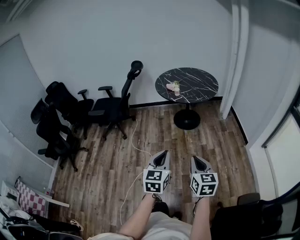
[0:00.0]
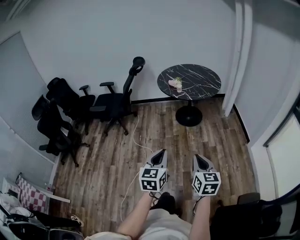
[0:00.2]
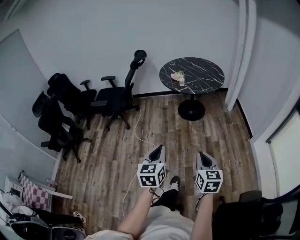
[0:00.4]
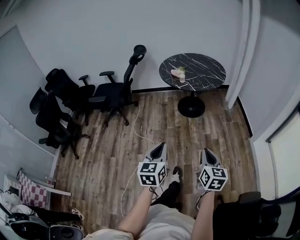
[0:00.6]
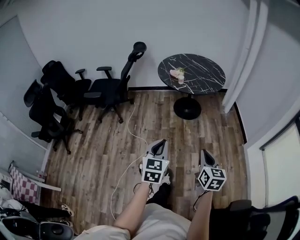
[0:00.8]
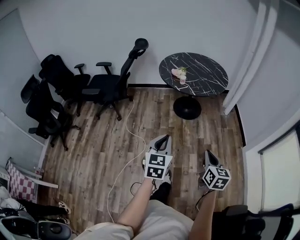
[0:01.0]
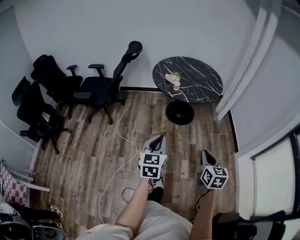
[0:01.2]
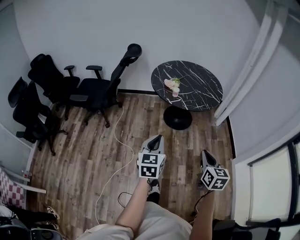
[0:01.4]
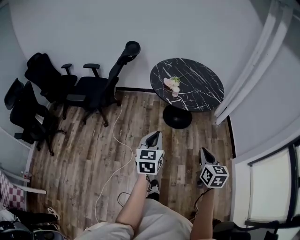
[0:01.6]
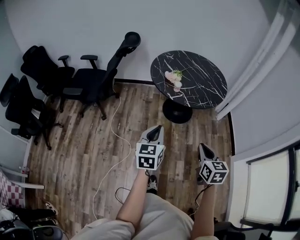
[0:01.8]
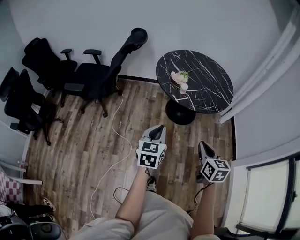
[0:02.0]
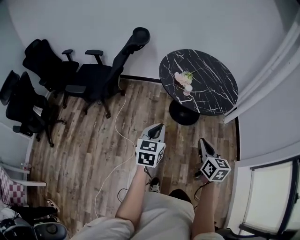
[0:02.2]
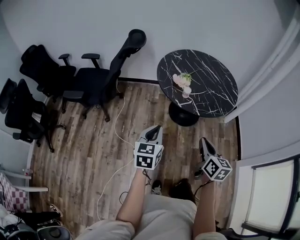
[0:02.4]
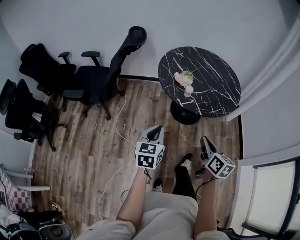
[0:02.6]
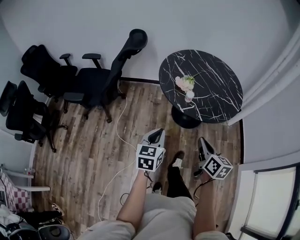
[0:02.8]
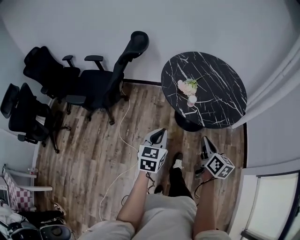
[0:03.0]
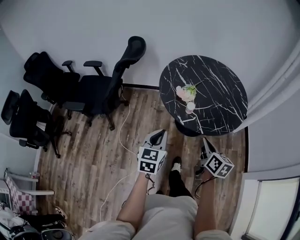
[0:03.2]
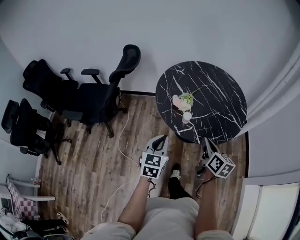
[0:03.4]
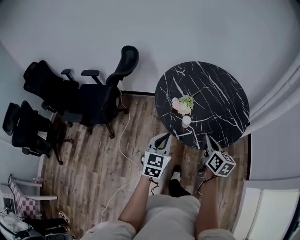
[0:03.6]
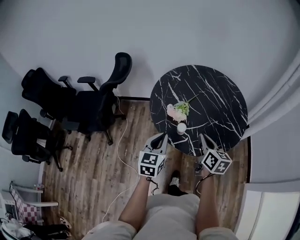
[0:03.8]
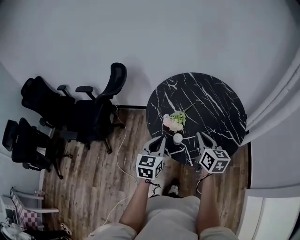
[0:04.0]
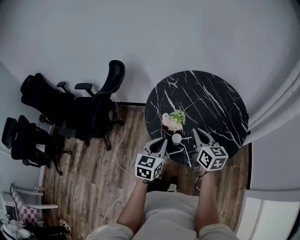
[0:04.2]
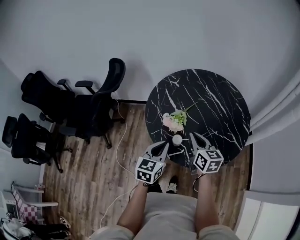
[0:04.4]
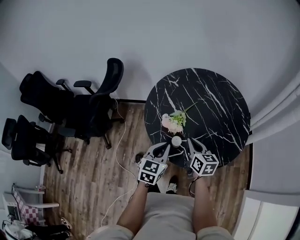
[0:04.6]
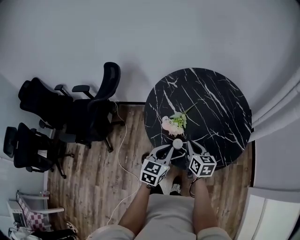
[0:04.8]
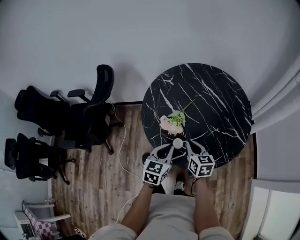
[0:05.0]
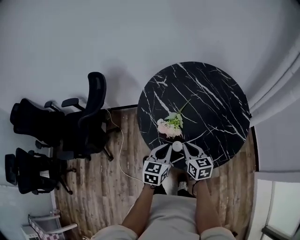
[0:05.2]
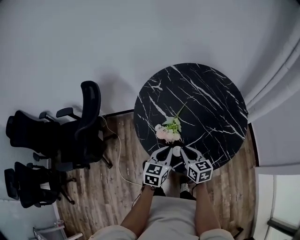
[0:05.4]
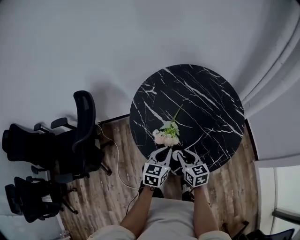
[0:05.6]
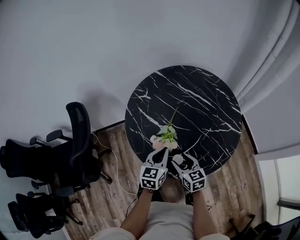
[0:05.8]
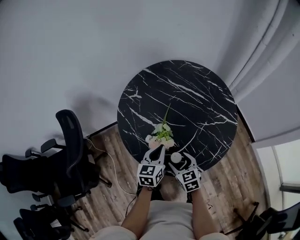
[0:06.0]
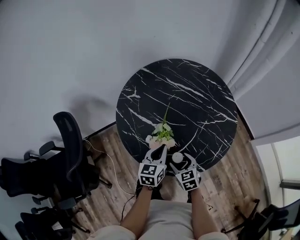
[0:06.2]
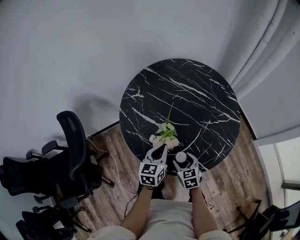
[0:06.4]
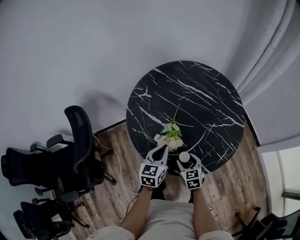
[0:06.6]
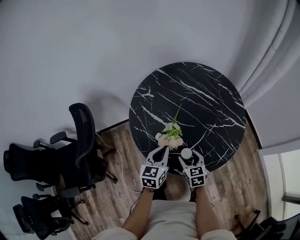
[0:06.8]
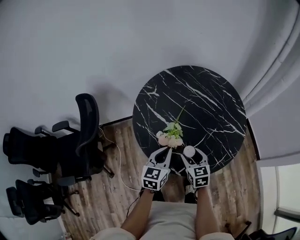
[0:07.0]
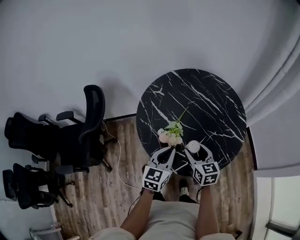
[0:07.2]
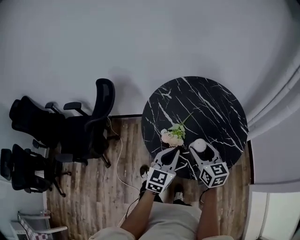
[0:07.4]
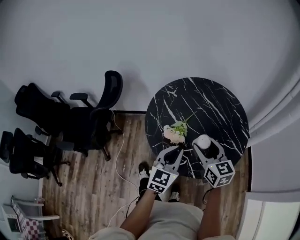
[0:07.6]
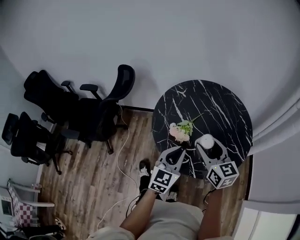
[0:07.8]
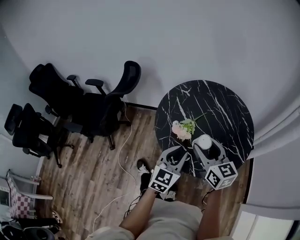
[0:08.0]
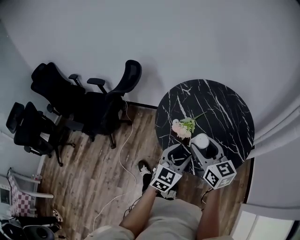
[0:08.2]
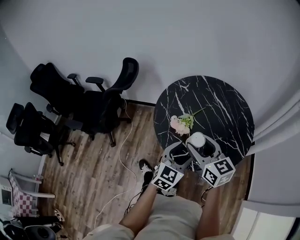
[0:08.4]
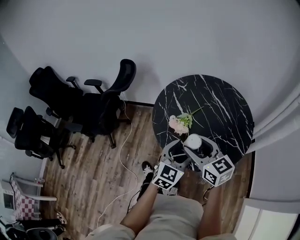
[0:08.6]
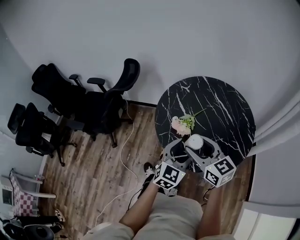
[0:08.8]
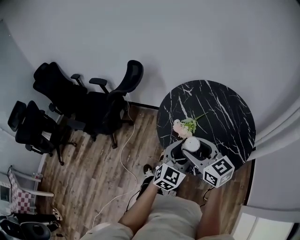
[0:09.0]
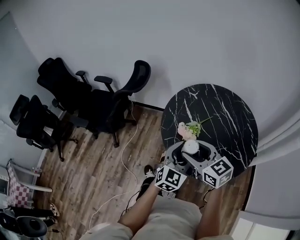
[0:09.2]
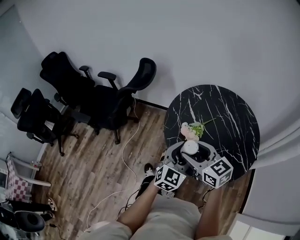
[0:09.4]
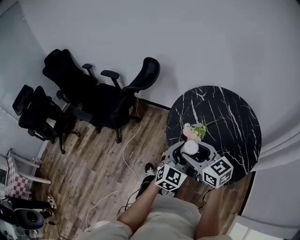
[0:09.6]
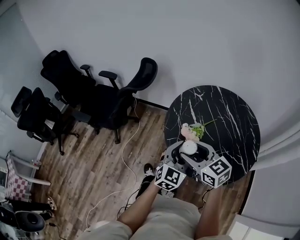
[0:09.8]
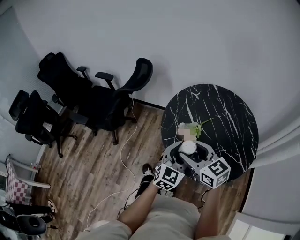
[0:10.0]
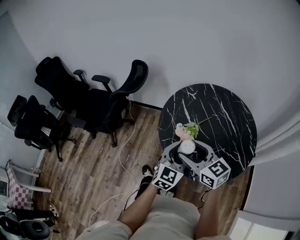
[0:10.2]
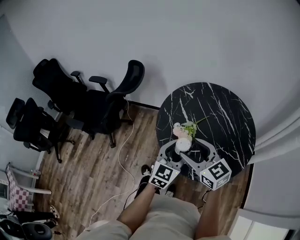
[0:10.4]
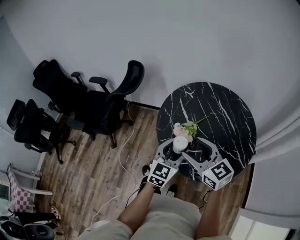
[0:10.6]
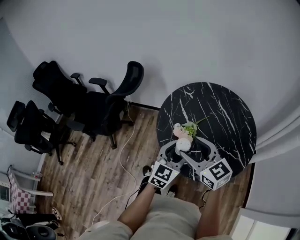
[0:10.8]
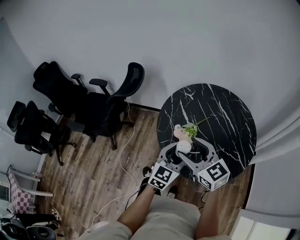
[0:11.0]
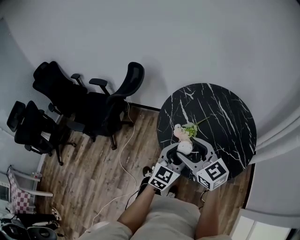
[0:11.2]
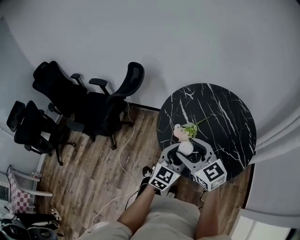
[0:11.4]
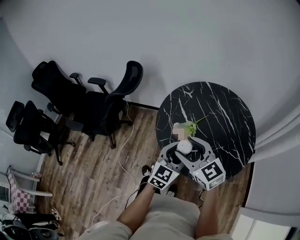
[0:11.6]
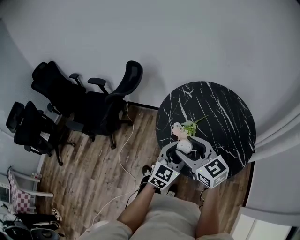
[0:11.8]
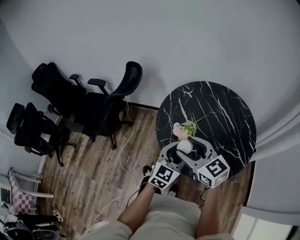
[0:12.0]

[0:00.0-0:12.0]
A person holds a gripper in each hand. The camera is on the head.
0:00.0 to 0:01.6: Both grippers move forward, some 35 cm.
0:01.6 to 0:03.0: Both grippers travel together forward, about 25 cm. The right gripper rotates about 20 degrees.
0:03.0 to 0:04.4: The right gripper moves forward, some 30 cm, while the left gripper is displaced forward and to the right by approximately 30 cm.
0:04.4 to 0:06.0: The left gripper goes some 20 cm forward and downward, and changes its angle by some 20 degrees. Meanwhile the right gripper moves downward and to the left, about 15 cm, turns by some 30 degrees, and opens up.
0:06.0 to 0:07.6: The right gripper heads upward, covering some 20 cm, and rotates approximately 30 degrees. The left gripper heads upward, backward and to the right, covering about 20 cm, and swivels about 20 degrees.
0:07.6 to 0:09.0: The left gripper shifts by roughly 5 cm, and opens up, while the right gripper travels to the left and backward by roughly 10 cm, and turns by roughly 30 degrees.
0:09.0 to 0:10.4: The left gripper ends up approximately 5 cm from where it was.
0:10.4 to 0:12.0: The grippers stay close to where they were, moving slightly.

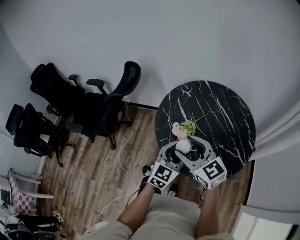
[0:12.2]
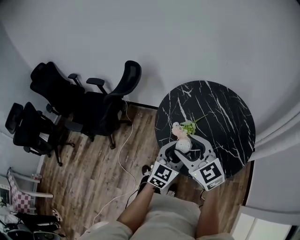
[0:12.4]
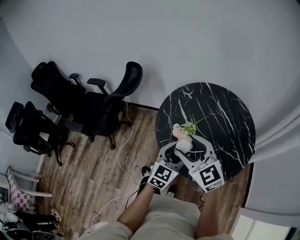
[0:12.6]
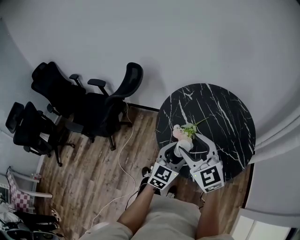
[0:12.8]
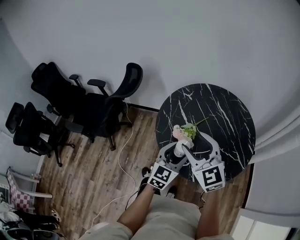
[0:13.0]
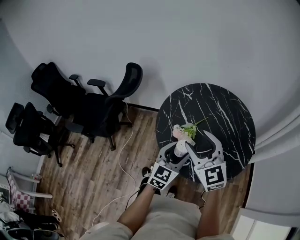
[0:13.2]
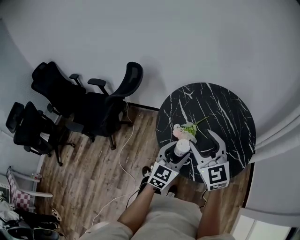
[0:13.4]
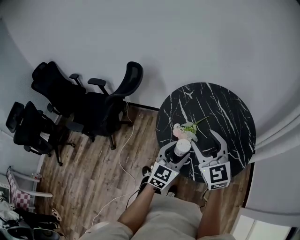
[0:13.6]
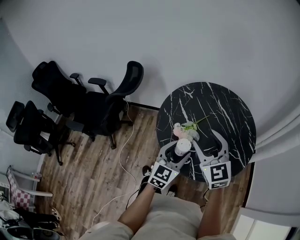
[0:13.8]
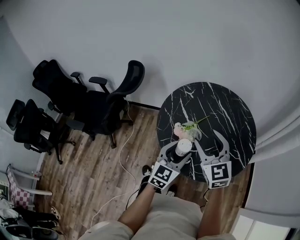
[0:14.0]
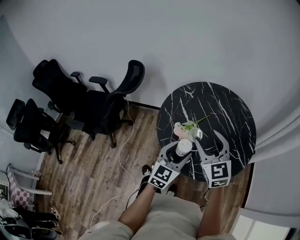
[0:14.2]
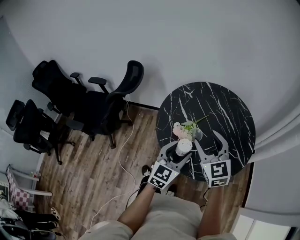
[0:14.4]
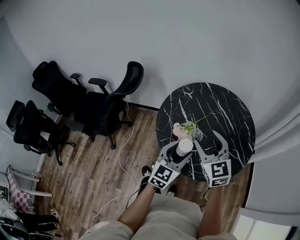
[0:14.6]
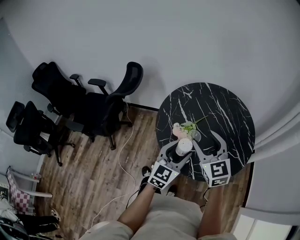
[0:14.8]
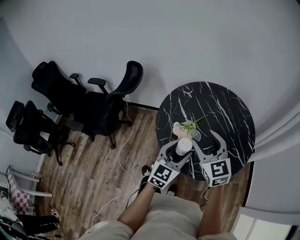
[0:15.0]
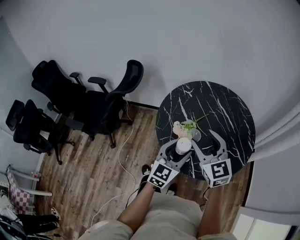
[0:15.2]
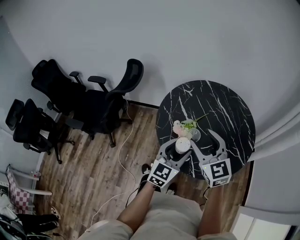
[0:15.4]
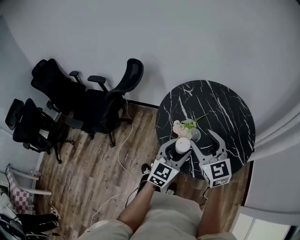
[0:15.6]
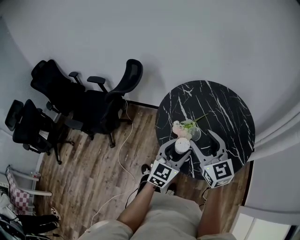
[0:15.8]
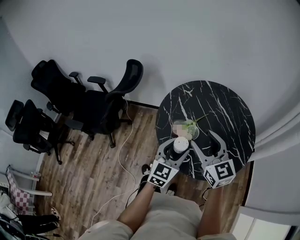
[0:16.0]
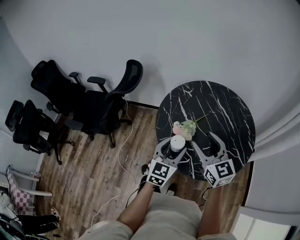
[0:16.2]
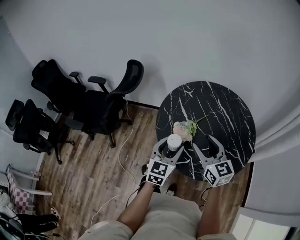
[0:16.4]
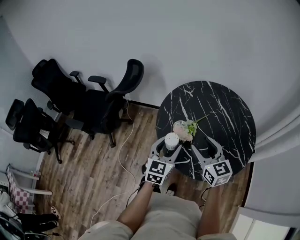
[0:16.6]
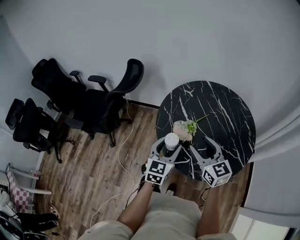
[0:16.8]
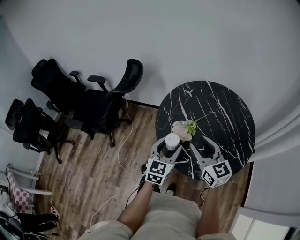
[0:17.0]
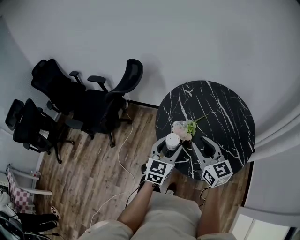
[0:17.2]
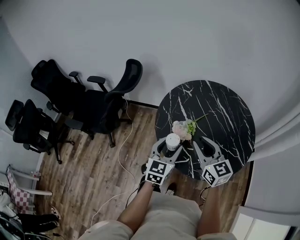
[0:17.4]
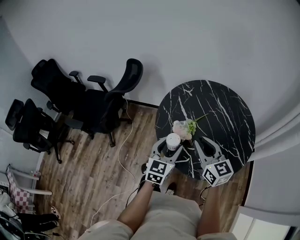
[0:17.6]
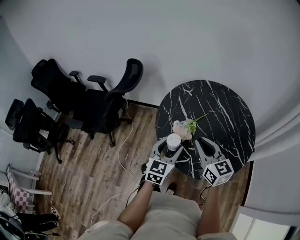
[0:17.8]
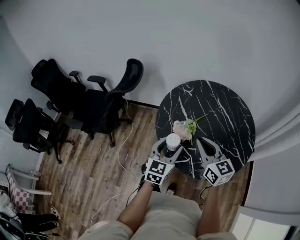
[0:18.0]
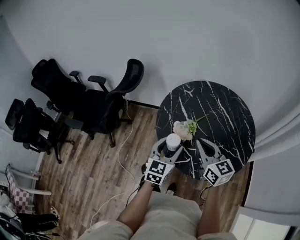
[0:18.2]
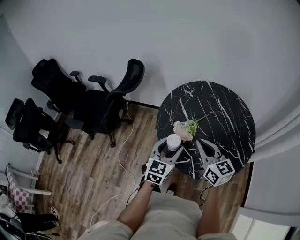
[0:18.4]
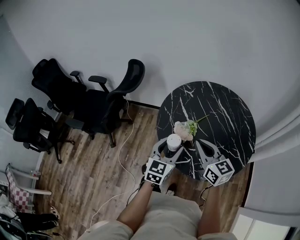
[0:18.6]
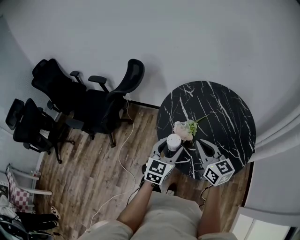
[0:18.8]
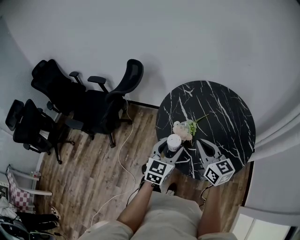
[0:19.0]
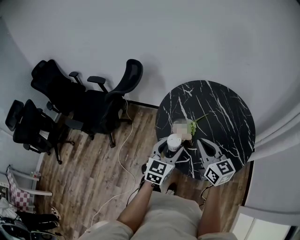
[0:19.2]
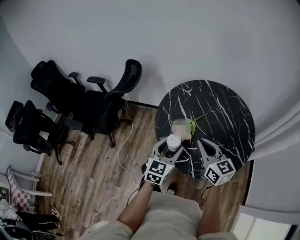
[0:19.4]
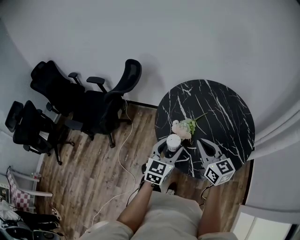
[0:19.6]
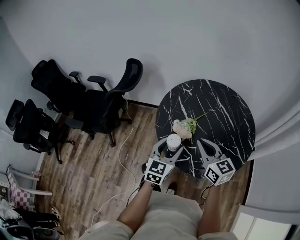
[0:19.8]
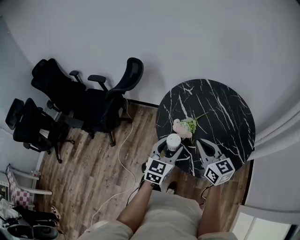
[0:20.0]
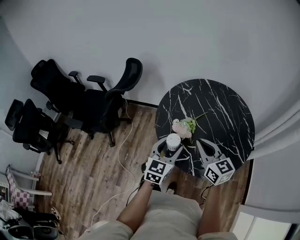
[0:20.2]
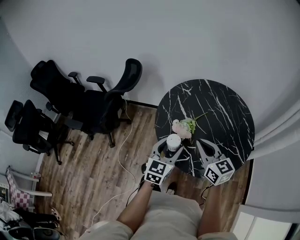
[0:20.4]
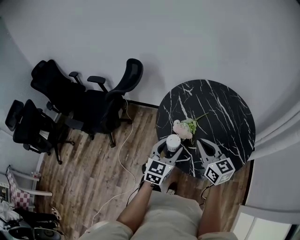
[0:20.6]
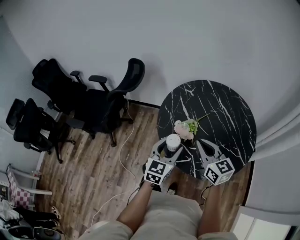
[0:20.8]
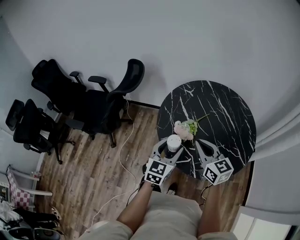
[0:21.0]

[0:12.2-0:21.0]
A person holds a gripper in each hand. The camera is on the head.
0:12.2 to 0:13.6: The right gripper moves to the right, approximately 5 cm, and rotates about 20 degrees.
0:13.6 to 0:15.2: The grippers stay close to where they were, moving slightly.
0:15.2 to 0:16.6: The right gripper goes approximately 5 cm downward. The left gripper moves to the left, roughly 5 cm.
0:16.6 to 0:18.0: The right gripper closes its fingers.
0:18.0 to 0:19.6: Both grippers stay put.
0:19.6 to 0:21.0: The grippers move only a little.

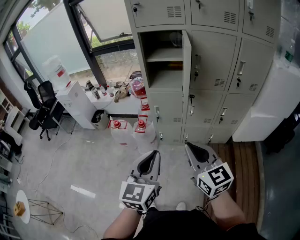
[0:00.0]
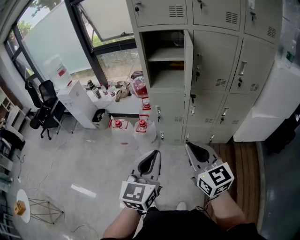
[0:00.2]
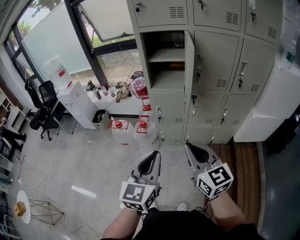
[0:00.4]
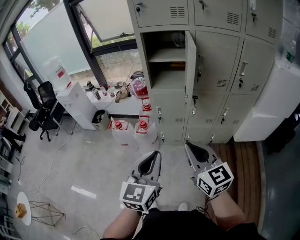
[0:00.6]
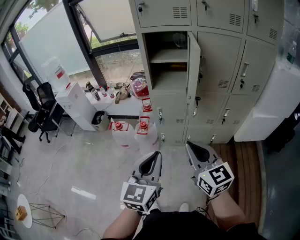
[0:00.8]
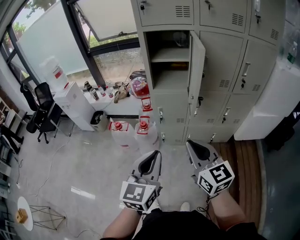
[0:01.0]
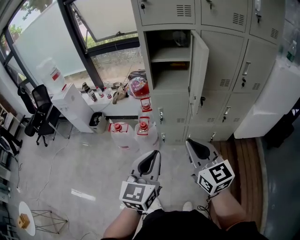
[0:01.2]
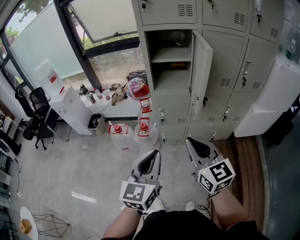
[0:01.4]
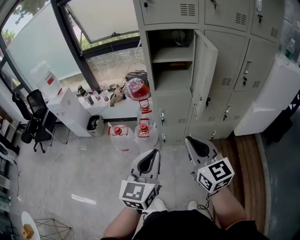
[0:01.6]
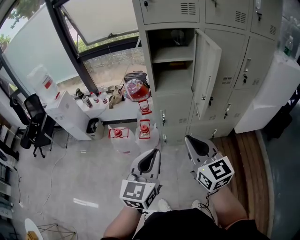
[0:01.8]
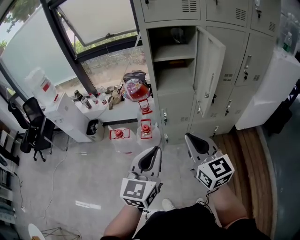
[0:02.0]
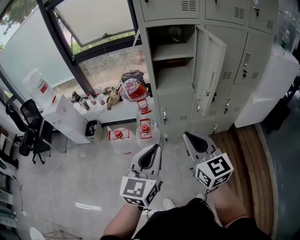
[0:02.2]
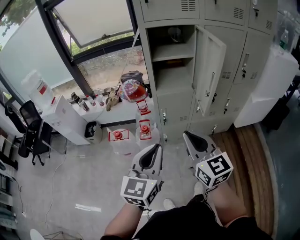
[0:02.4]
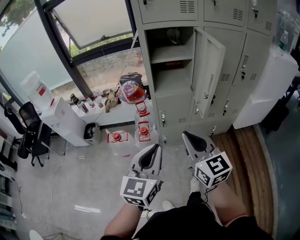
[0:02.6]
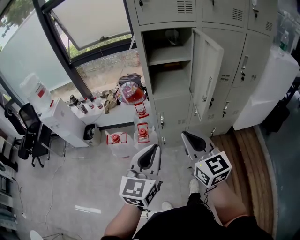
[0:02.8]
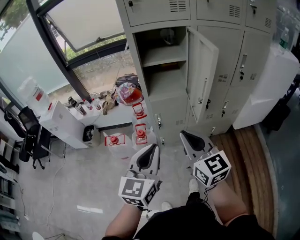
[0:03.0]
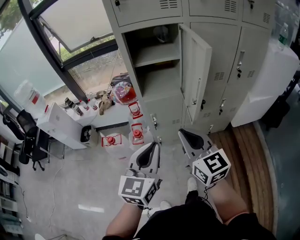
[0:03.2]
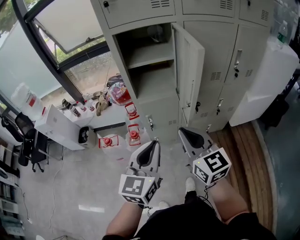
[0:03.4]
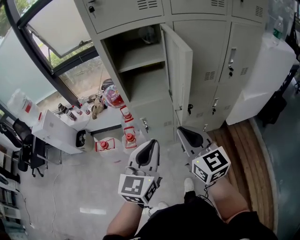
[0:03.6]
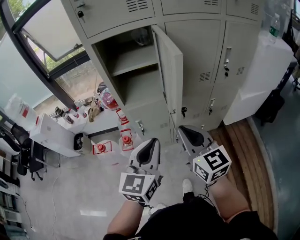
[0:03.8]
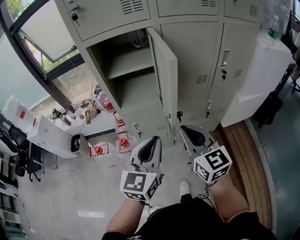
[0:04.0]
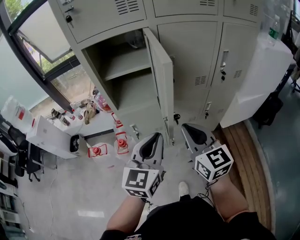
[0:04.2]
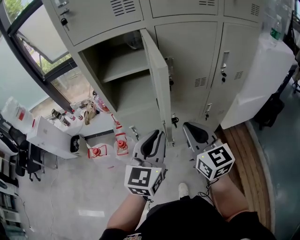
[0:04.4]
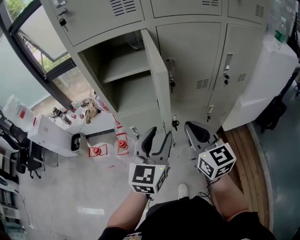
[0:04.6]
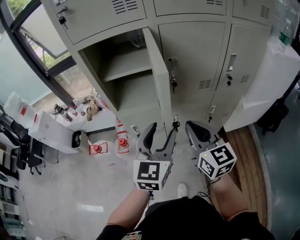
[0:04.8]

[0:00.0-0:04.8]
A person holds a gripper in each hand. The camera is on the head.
0:00.0 to 0:01.6: Both grippers move to the left and forward, some 10 cm.
0:01.6 to 0:03.2: The grippers both shift forward by about 10 cm.
0:03.2 to 0:04.8: The two grippers go some 20 cm to the right and forward. The left gripper opens.
